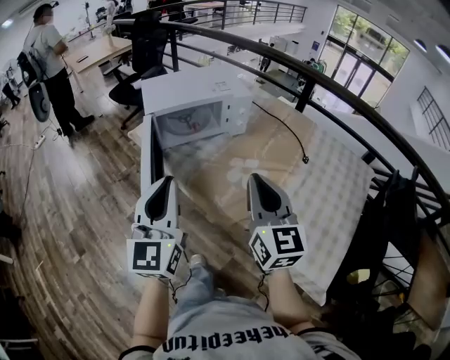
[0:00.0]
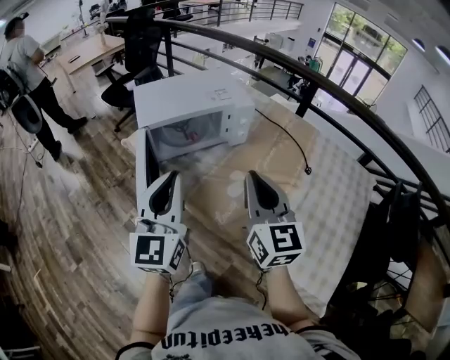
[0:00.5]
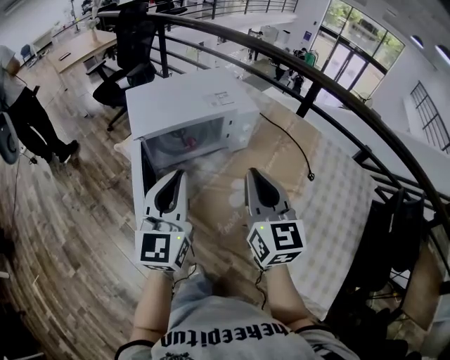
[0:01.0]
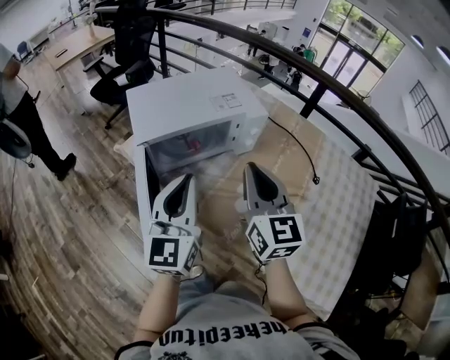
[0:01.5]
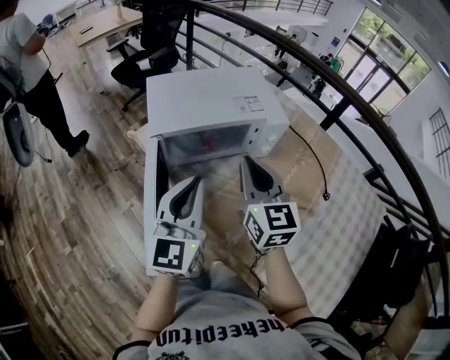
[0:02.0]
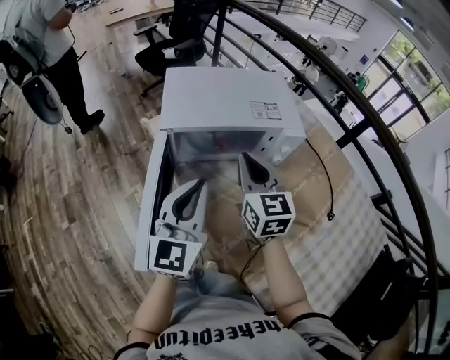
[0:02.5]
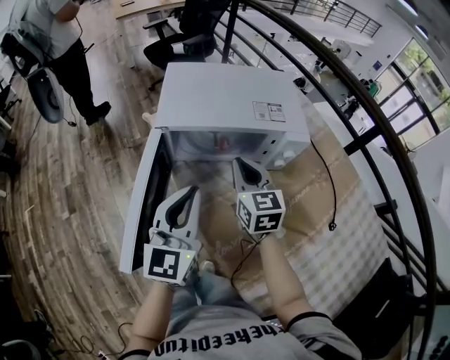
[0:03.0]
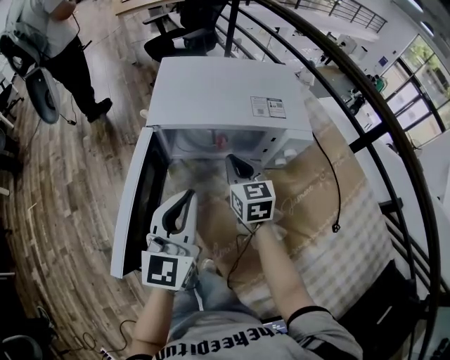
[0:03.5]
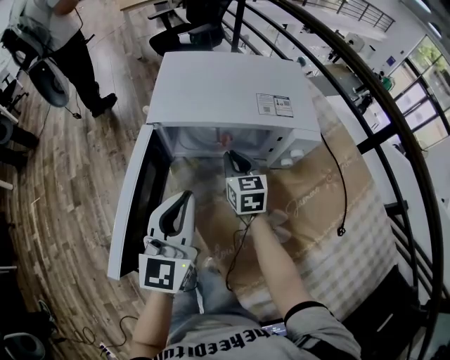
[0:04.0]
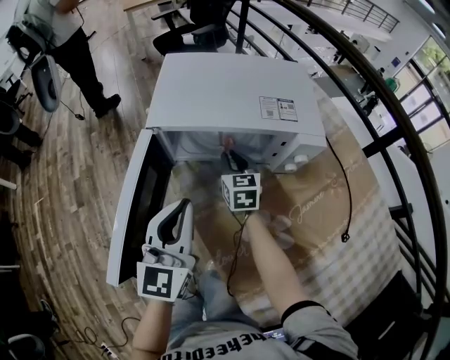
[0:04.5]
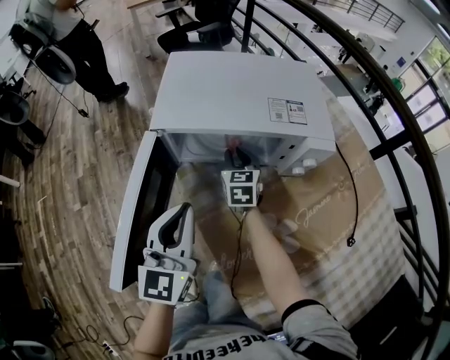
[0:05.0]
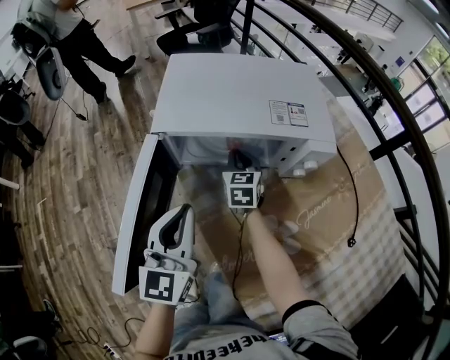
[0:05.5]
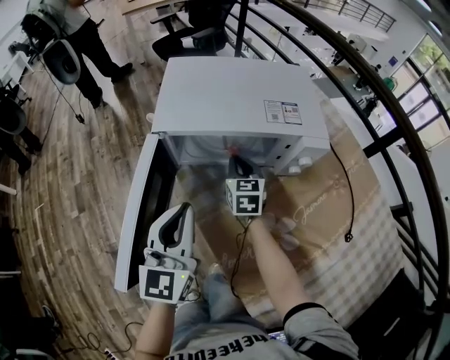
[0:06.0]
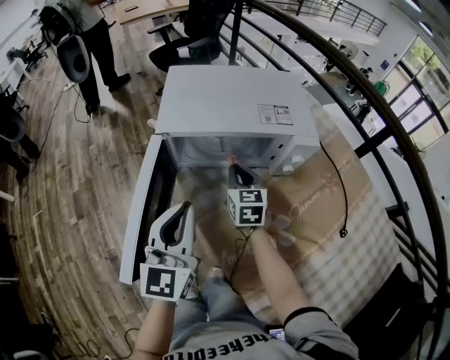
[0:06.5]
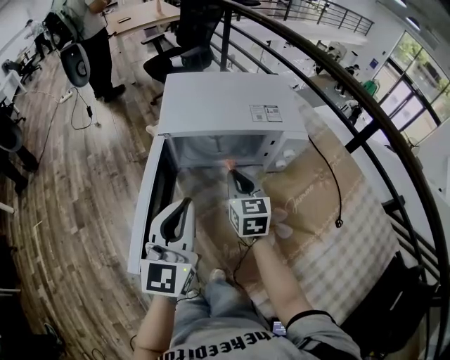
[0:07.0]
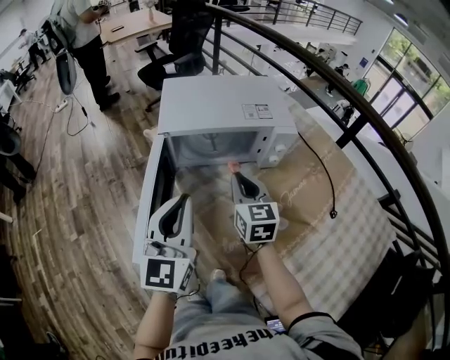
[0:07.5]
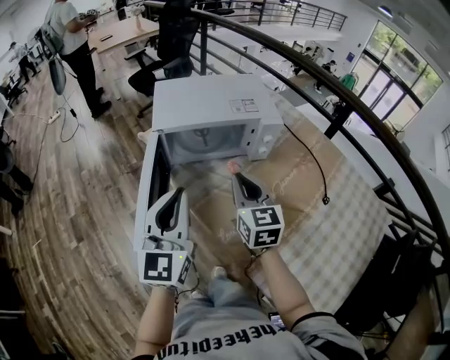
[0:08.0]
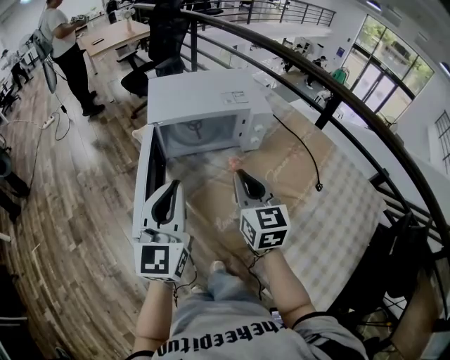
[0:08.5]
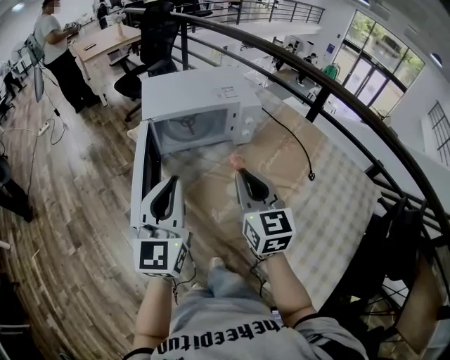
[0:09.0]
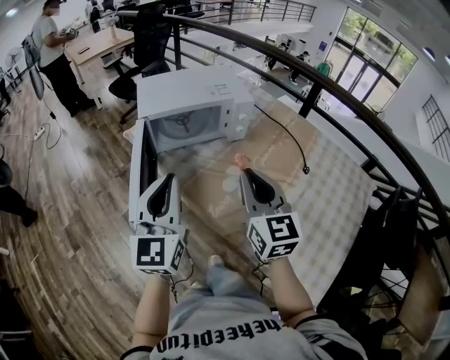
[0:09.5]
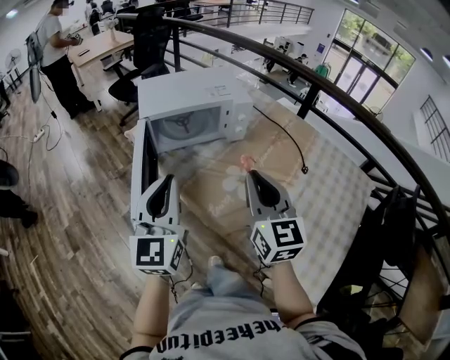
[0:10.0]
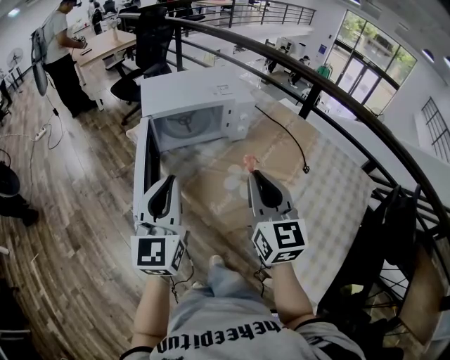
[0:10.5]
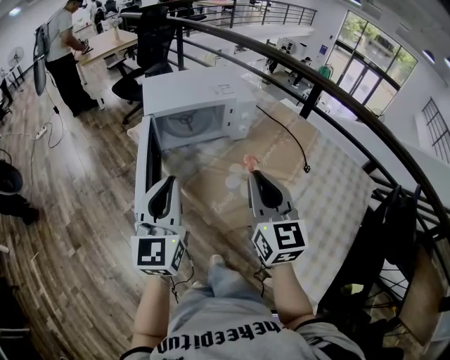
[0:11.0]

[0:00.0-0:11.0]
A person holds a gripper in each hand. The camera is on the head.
0:00.0 to 0:02.0: Both grippers travel together forward, about 25 cm.
0:02.0 to 0:03.5: The right gripper is displaced downward and forward by approximately 20 cm, and rotates some 20 degrees, while the left gripper travels downward by approximately 5 cm.
0:03.5 to 0:05.5: The right gripper moves downward and forward, about 10 cm.
0:05.5 to 0:07.5: The left gripper travels upward and backward by roughly 10 cm. The right gripper goes some 25 cm backward and upward.
0:07.5 to 0:09.0: The left gripper travels backward by some 10 cm. The right gripper is displaced backward and upward by about 20 cm.
0:09.0 to 0:11.0: The right gripper moves backward, approximately 5 cm.

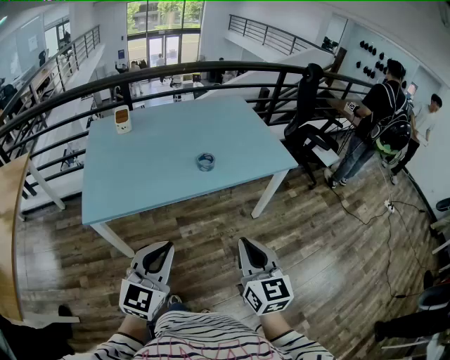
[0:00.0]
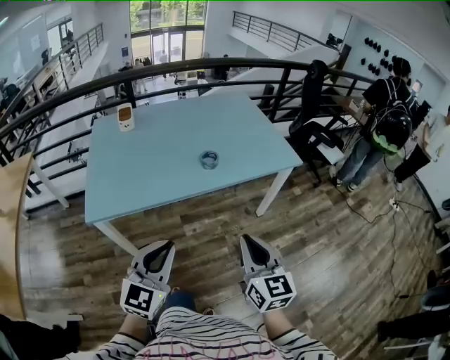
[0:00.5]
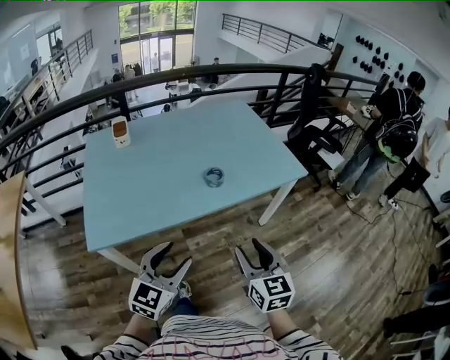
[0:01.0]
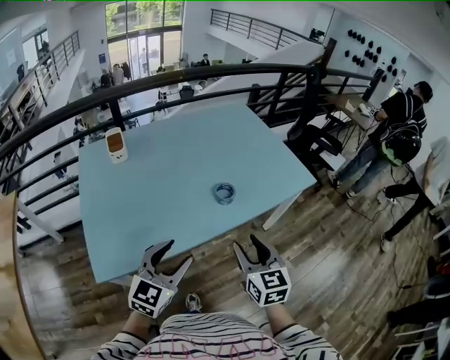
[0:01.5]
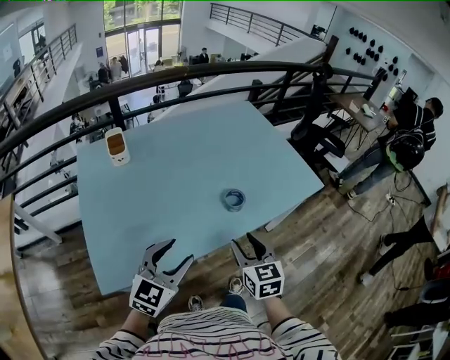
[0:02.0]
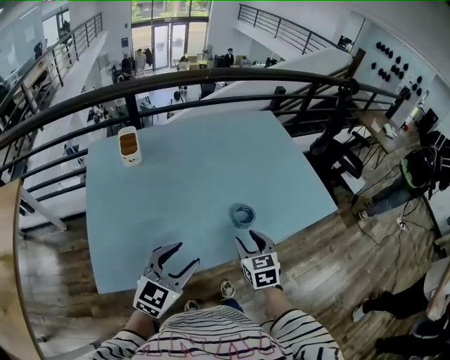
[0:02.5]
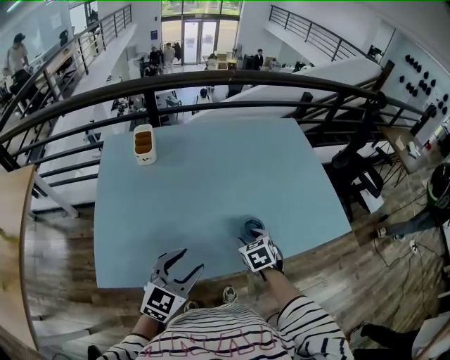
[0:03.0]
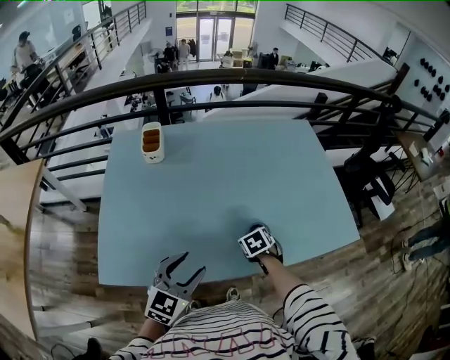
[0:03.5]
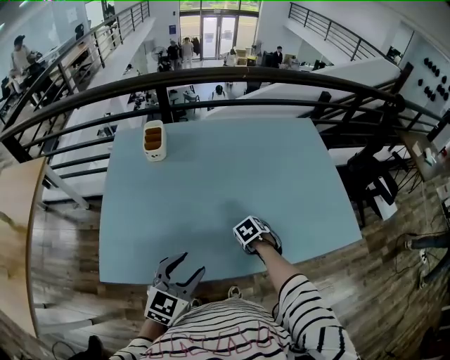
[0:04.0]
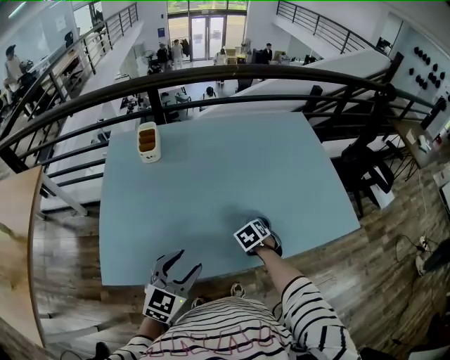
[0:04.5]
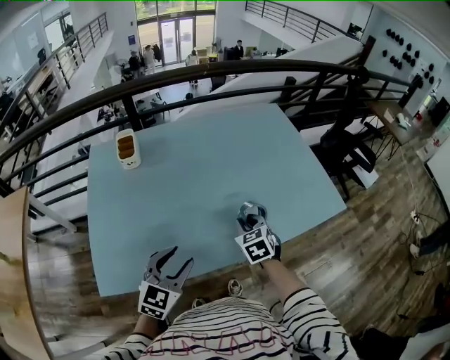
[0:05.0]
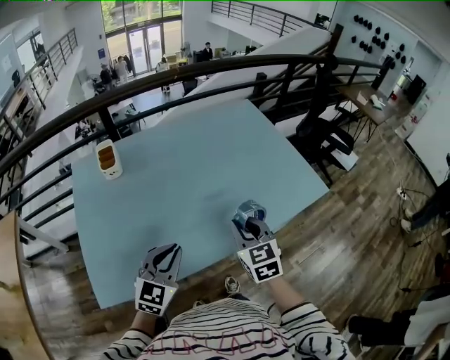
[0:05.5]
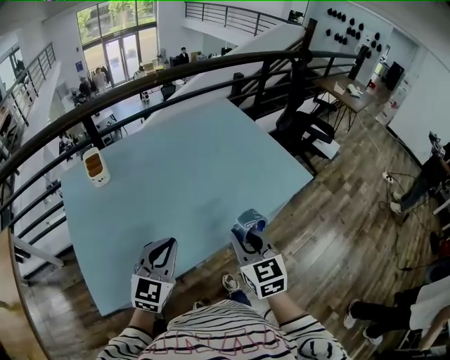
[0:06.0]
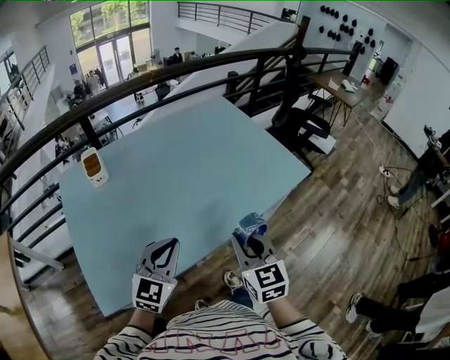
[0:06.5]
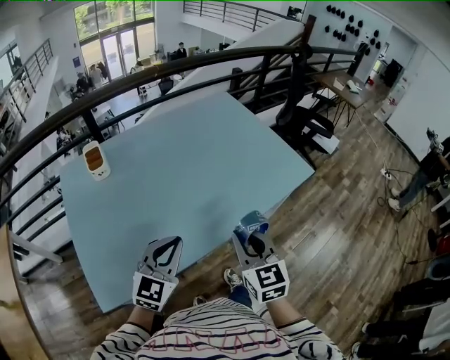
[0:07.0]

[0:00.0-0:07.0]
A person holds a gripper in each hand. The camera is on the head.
0:00.0 to 0:02.0: The two grippers go about 30 cm forward and to the left. The right gripper opens its fingers; the left gripper opens.
0:02.0 to 0:03.5: The right gripper goes approximately 25 cm forward and downward, and tilts its fingers some 40 degrees downward; the left gripper heads forward, covering some 10 cm.
0:03.5 to 0:05.0: The right gripper moves upward, some 10 cm, changes its angle by about 30 degrees, and closes.
0:05.0 to 0:07.0: The left gripper closes its fingers, while the right gripper shifts approximately 20 cm backward and upward, and changes its angle by approximately 30 degrees.

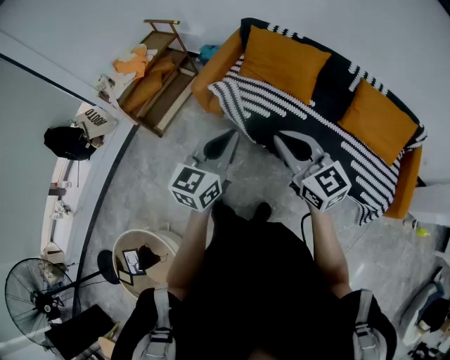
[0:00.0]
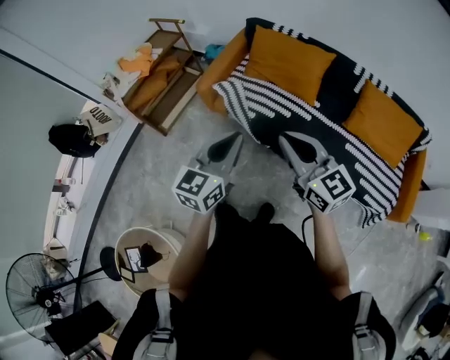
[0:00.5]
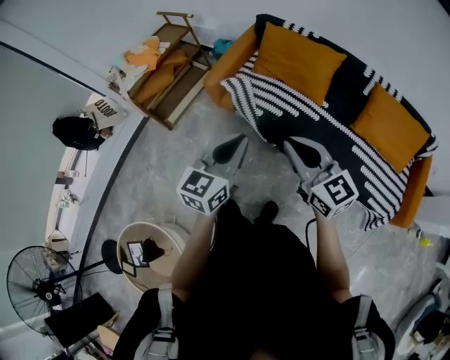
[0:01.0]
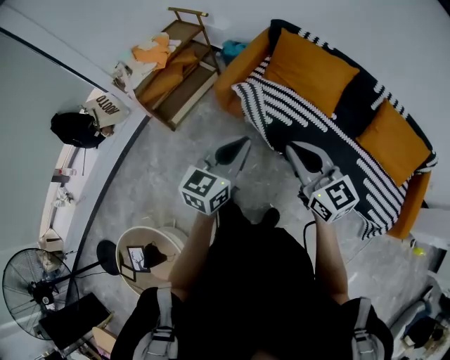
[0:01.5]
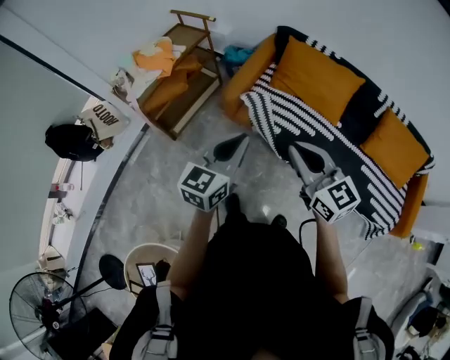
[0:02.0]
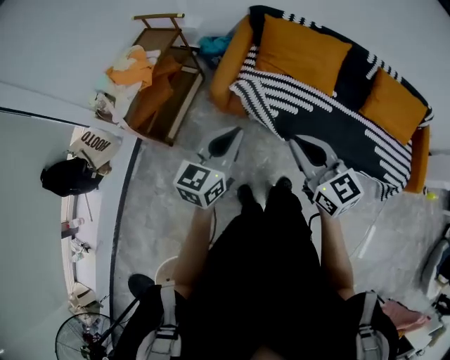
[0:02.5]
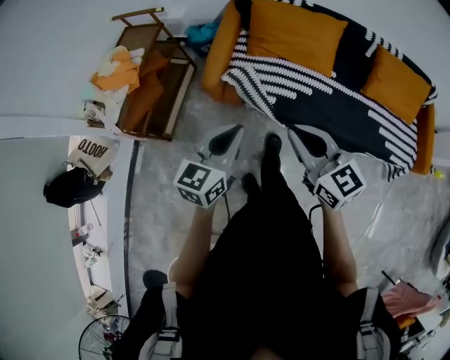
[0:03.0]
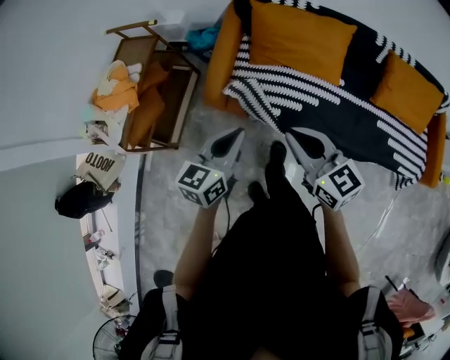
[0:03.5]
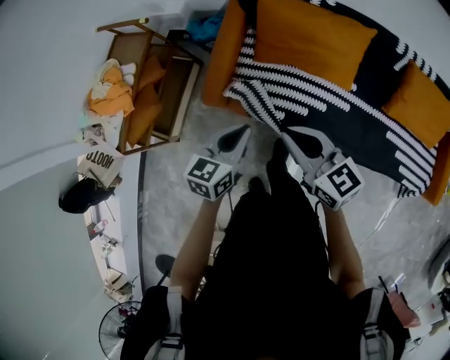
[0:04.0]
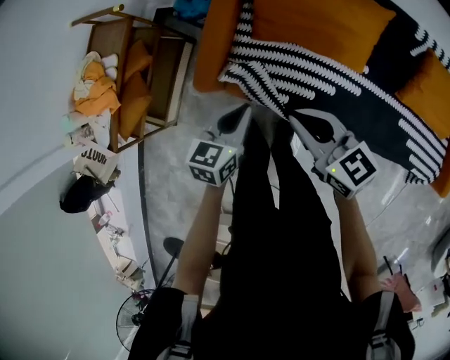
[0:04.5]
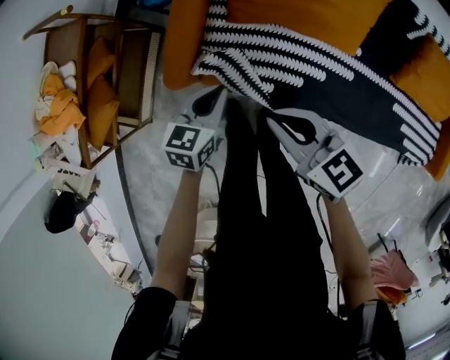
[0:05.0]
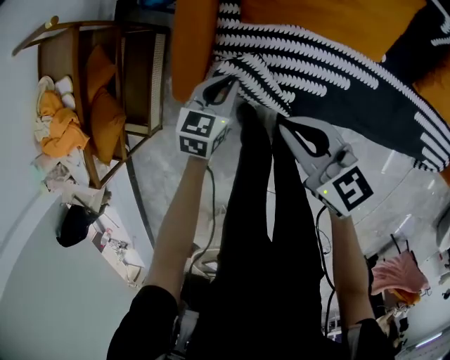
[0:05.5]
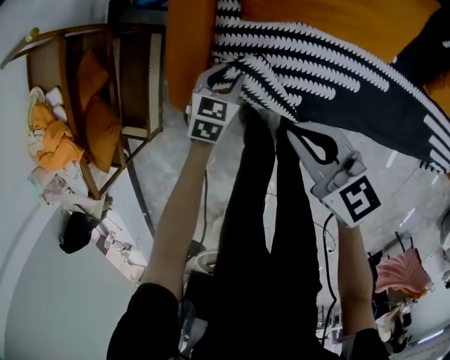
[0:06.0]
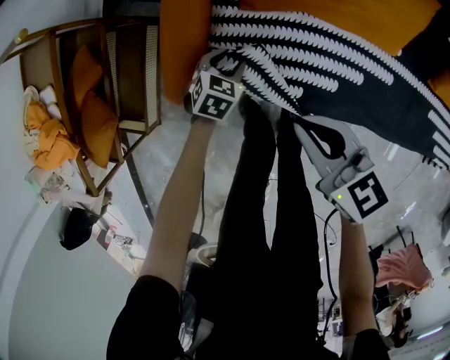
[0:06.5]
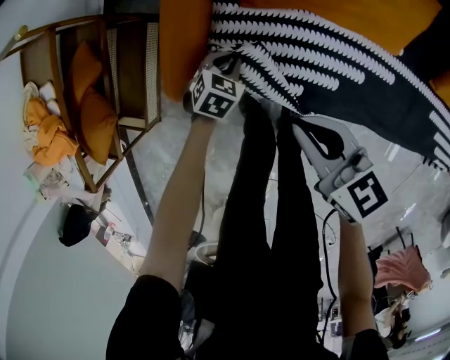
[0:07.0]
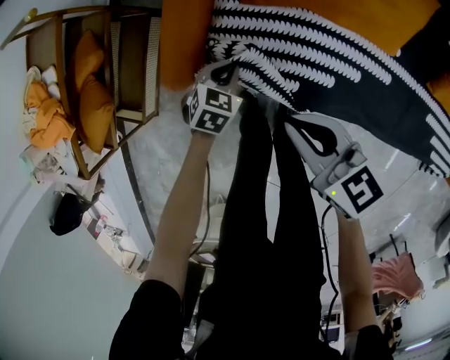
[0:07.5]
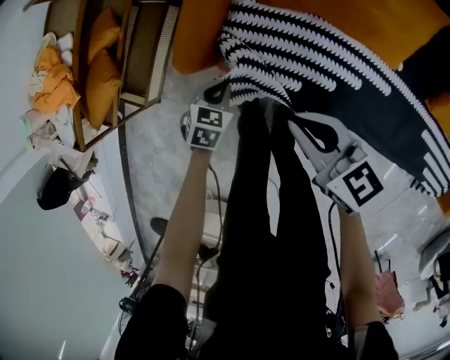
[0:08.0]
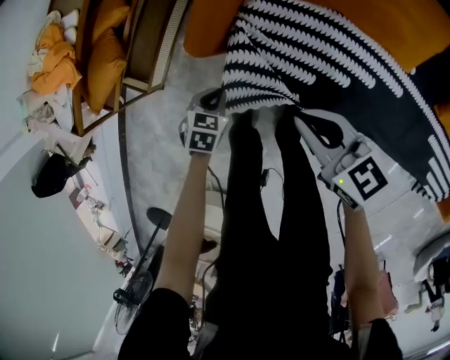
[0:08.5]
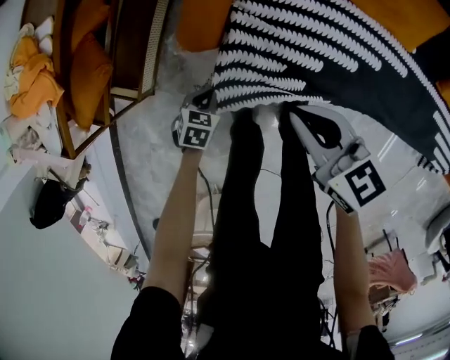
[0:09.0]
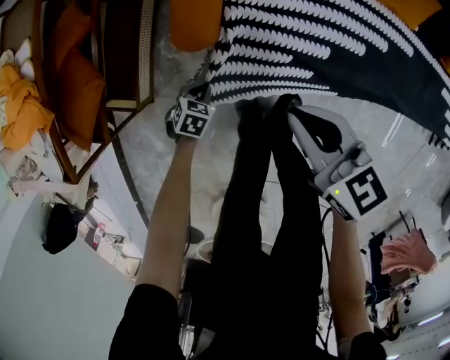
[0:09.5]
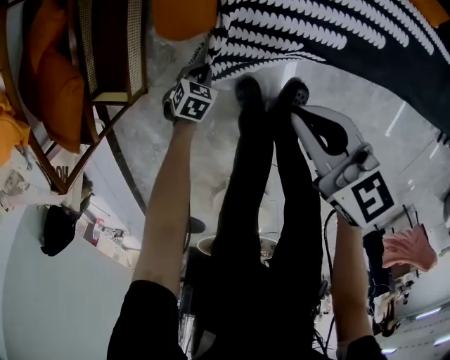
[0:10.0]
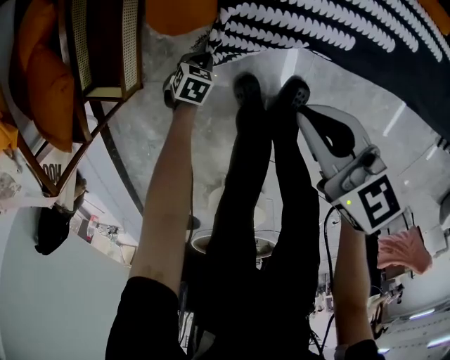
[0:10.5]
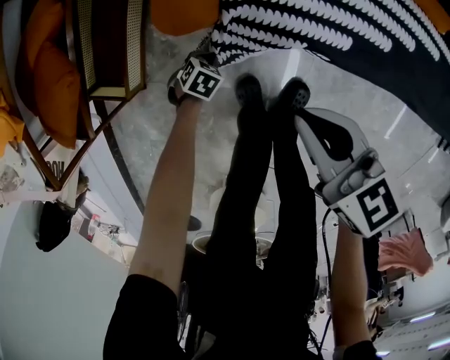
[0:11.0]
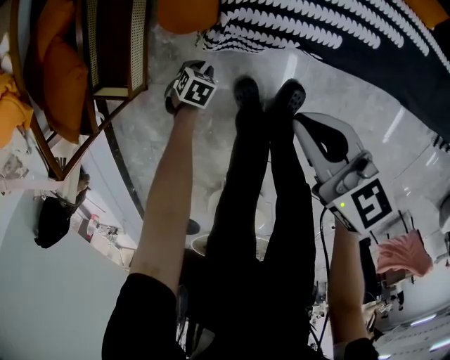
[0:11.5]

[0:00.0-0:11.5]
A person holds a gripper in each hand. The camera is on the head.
0:00.0 to 0:02.0: The two grippers go approximately 20 cm to the left and forward.
0:02.0 to 0:04.0: The two grippers go roughly 30 cm forward and downward. The left gripper changes its angle by about 20 degrees.
0:04.0 to 0:06.0: The right gripper travels downward by some 25 cm. Meanwhile the left gripper shifts approximately 40 cm downward and forward, changes its angle by about 30 degrees, and opens its fingers.
0:06.0 to 0:07.5: The grippers both shift to the right by about 10 cm. The left gripper closes its fingers.
0:07.5 to 0:09.5: The right gripper moves roughly 15 cm. Meanwhile the left gripper shifts by about 30 cm.
0:09.5 to 0:11.5: The left gripper travels downward by roughly 10 cm.
